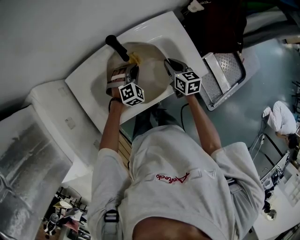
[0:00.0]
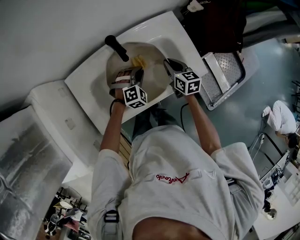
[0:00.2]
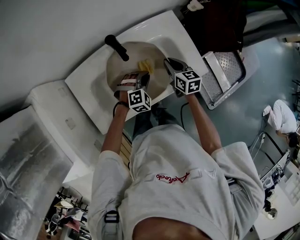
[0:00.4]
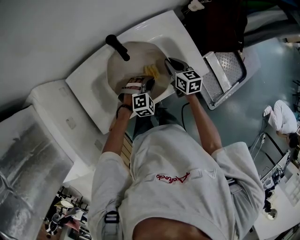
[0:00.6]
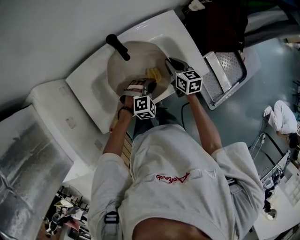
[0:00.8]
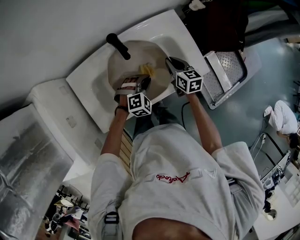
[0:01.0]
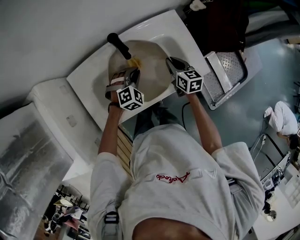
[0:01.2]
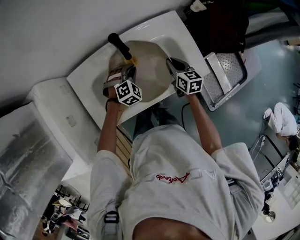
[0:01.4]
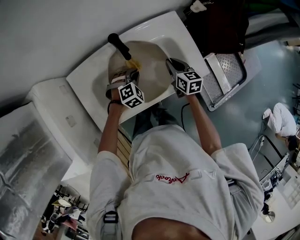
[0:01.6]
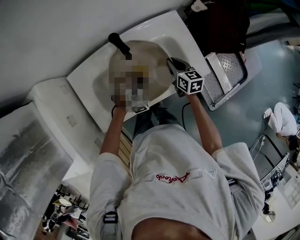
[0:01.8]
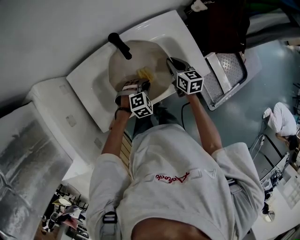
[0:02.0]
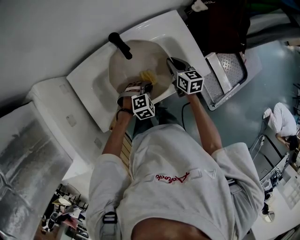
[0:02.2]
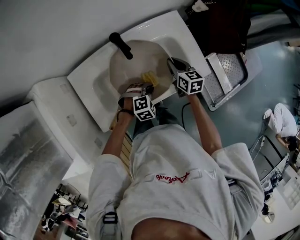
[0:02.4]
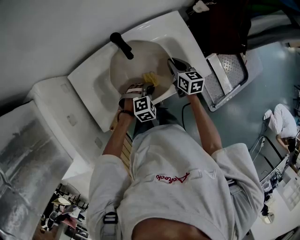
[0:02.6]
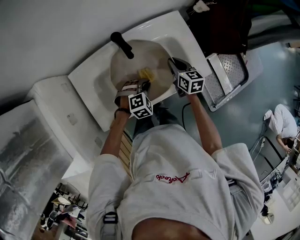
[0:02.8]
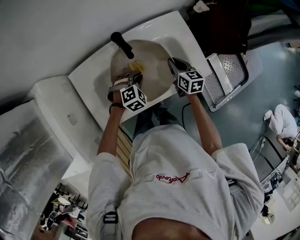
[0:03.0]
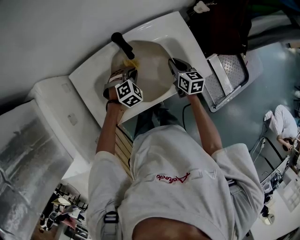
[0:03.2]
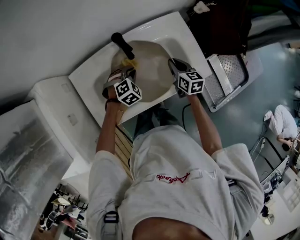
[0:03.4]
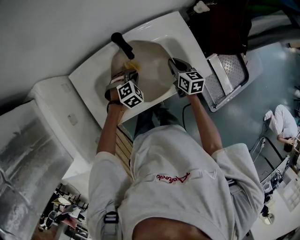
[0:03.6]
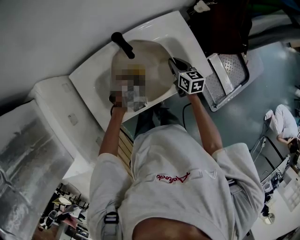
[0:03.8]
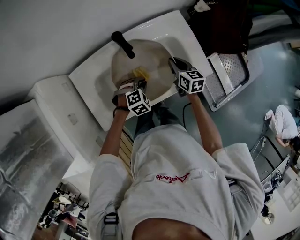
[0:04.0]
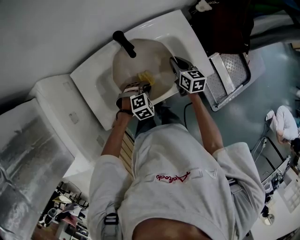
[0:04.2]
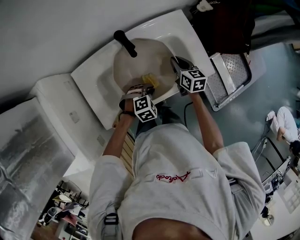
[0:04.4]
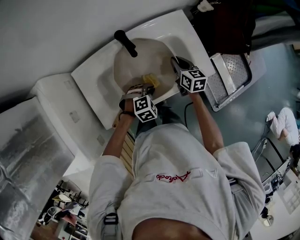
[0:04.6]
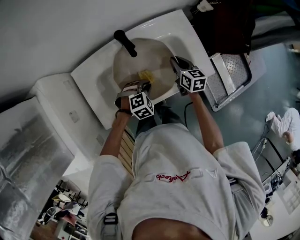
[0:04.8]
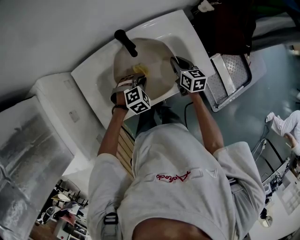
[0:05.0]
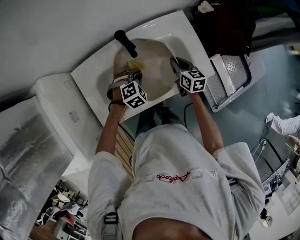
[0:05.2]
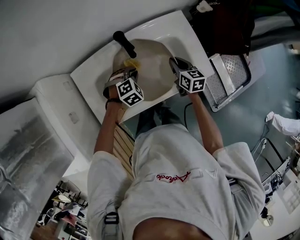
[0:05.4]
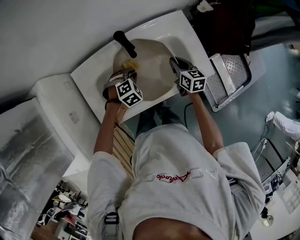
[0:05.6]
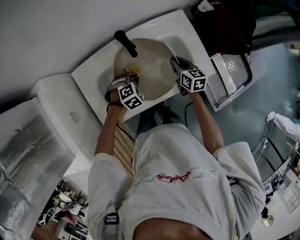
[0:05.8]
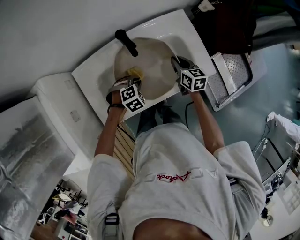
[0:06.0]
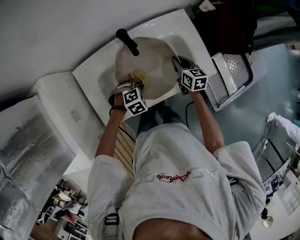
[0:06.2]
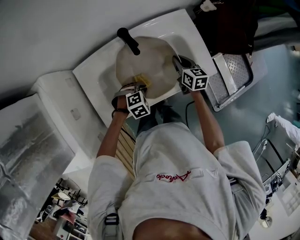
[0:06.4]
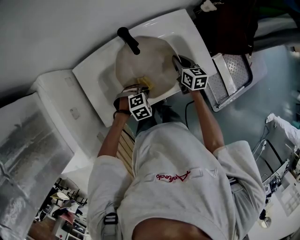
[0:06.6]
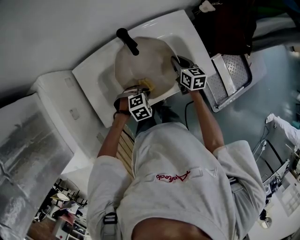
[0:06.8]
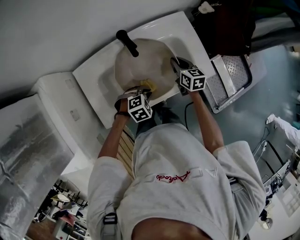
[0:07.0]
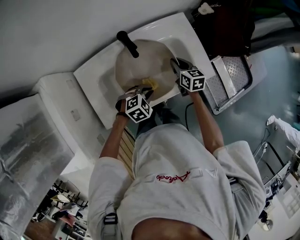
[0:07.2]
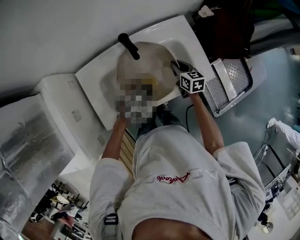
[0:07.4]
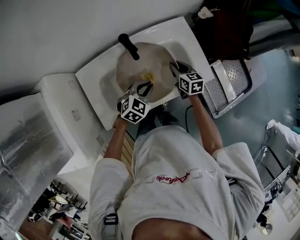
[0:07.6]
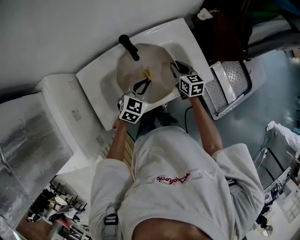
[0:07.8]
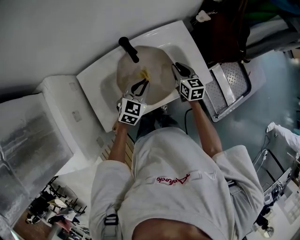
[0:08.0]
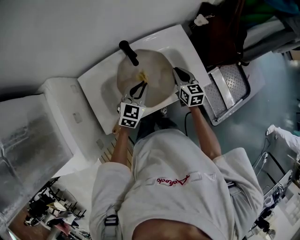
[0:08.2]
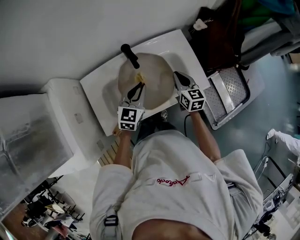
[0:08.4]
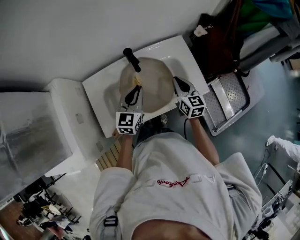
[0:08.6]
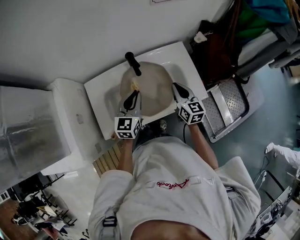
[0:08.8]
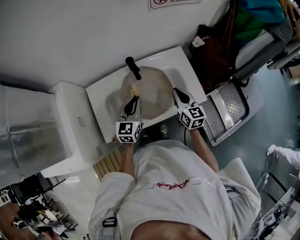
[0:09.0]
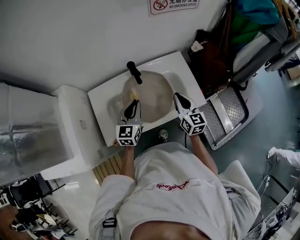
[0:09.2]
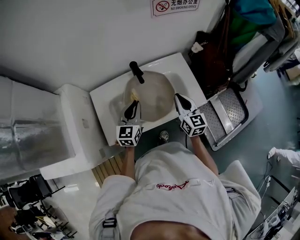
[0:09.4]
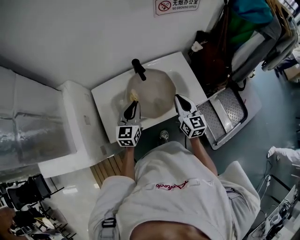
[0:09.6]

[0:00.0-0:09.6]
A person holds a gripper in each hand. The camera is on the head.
0:00.0 to 0:01.6: The left gripper travels backward and back again, roughly 10 cm each way.
0:01.6 to 0:03.2: The left gripper travels backward and back again, about 10 cm each way.
0:03.2 to 0:04.8: The left gripper travels backward and to the right by about 10 cm.
0:04.8 to 0:06.4: The left gripper moves approximately 5 cm forward and comes back.
0:06.4 to 0:08.0: The left gripper goes about 15 cm upward and forward, and tips its fingers upward by about 40 degrees.
0:08.0 to 0:09.6: The left gripper travels upward, to the left and backward by some 15 cm, and rotates approximately 30 degrees. Meanwhile the right gripper travels upward and backward by roughly 20 cm, and changes its angle by about 20 degrees.

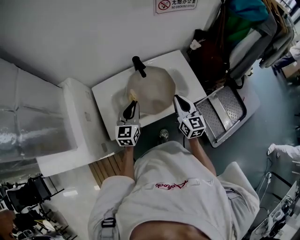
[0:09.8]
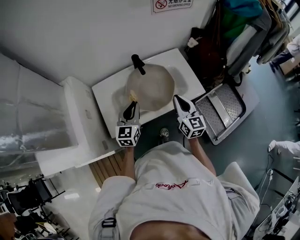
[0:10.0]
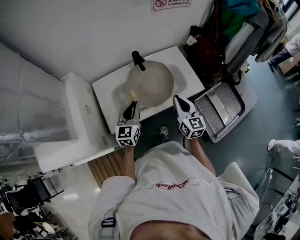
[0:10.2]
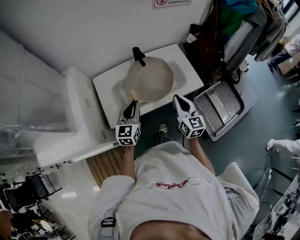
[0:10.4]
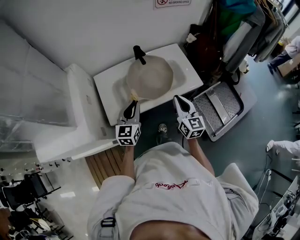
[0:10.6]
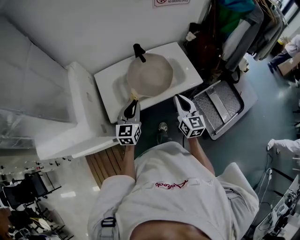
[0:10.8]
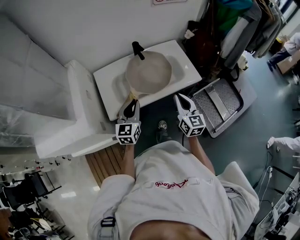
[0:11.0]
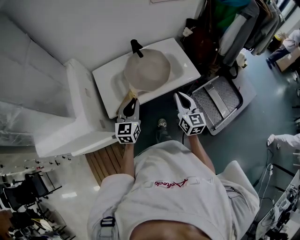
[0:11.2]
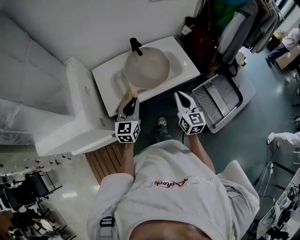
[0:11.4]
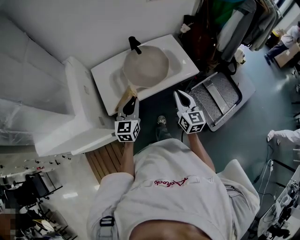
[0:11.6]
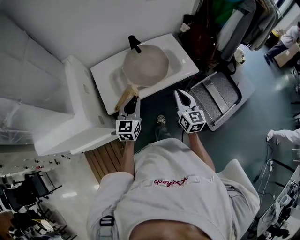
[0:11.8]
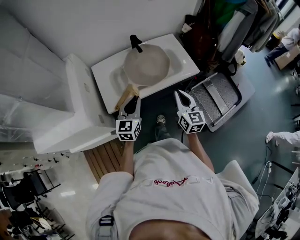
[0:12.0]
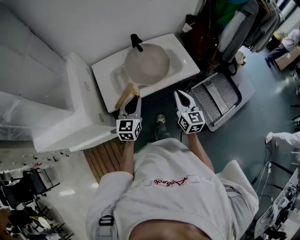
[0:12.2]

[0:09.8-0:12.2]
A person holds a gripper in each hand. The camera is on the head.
0:09.8 to 0:11.0: The grippers both shift backward by some 15 cm.
0:11.0 to 0:12.2: The grippers stay close to where they were, moving slightly.

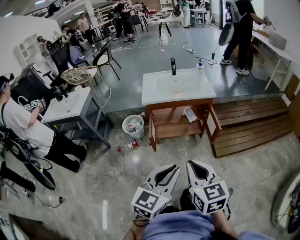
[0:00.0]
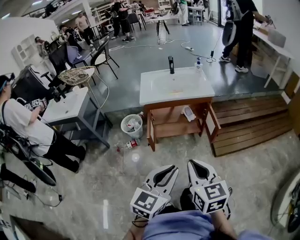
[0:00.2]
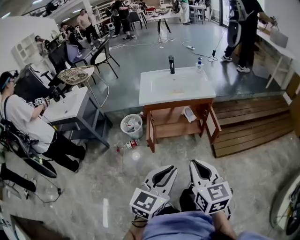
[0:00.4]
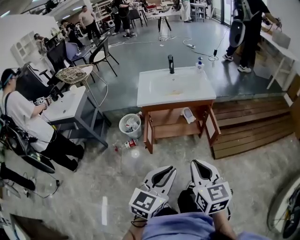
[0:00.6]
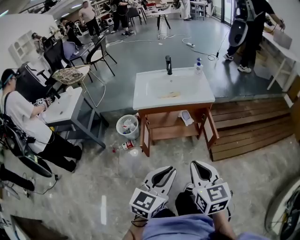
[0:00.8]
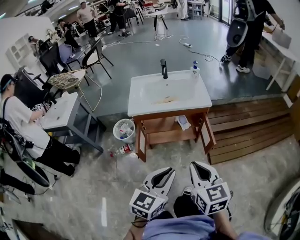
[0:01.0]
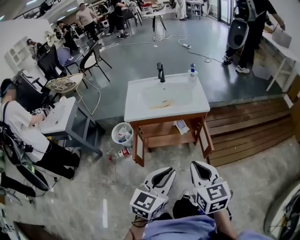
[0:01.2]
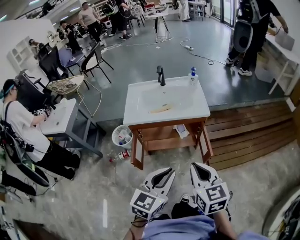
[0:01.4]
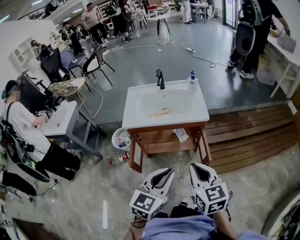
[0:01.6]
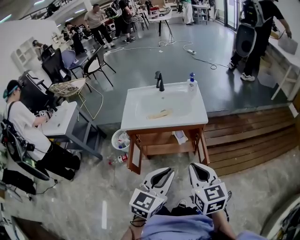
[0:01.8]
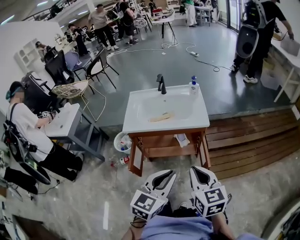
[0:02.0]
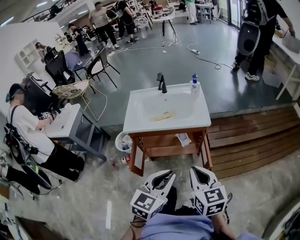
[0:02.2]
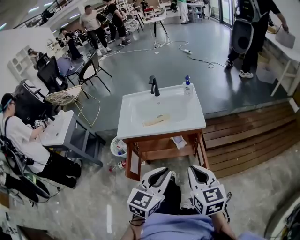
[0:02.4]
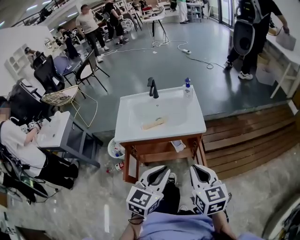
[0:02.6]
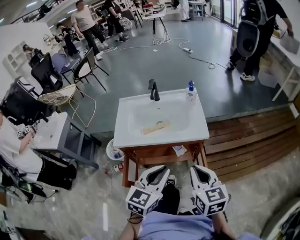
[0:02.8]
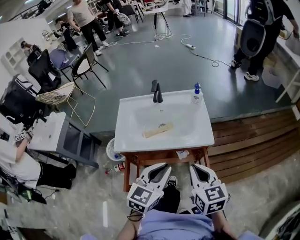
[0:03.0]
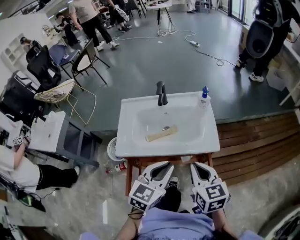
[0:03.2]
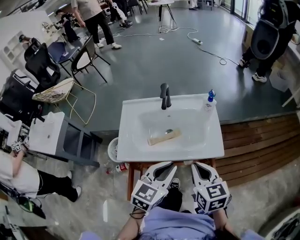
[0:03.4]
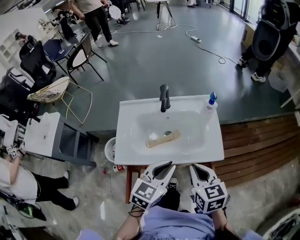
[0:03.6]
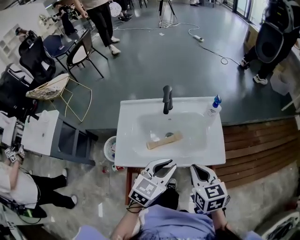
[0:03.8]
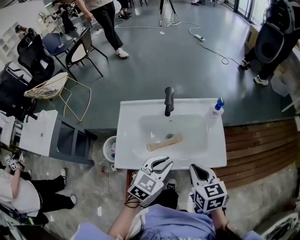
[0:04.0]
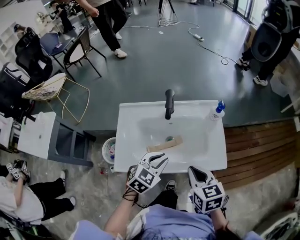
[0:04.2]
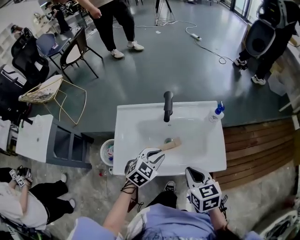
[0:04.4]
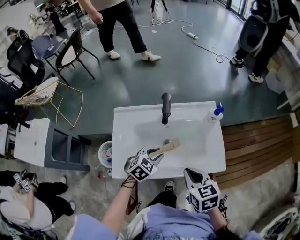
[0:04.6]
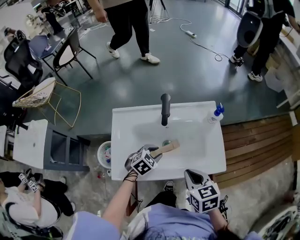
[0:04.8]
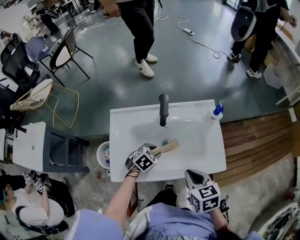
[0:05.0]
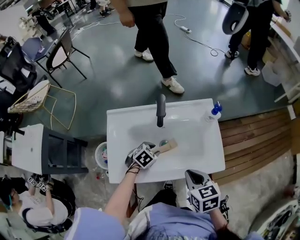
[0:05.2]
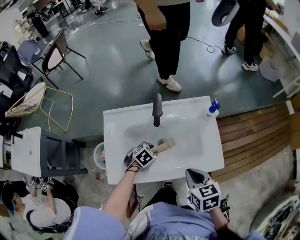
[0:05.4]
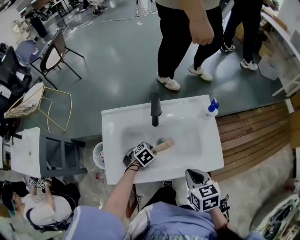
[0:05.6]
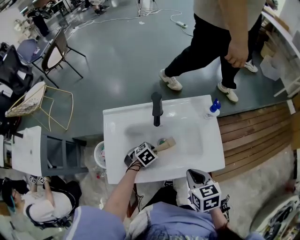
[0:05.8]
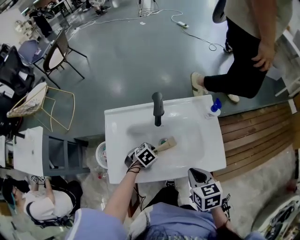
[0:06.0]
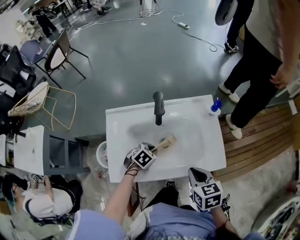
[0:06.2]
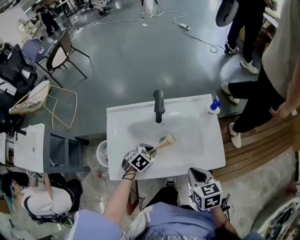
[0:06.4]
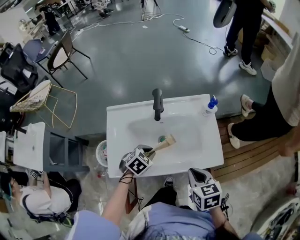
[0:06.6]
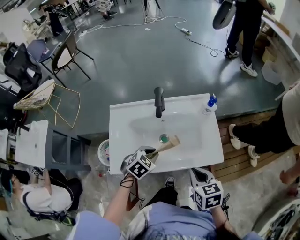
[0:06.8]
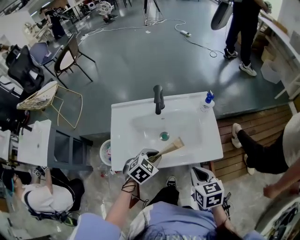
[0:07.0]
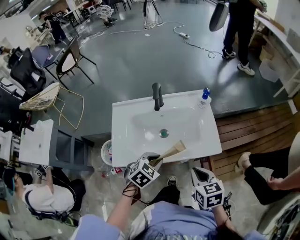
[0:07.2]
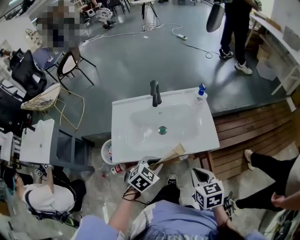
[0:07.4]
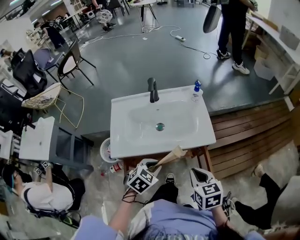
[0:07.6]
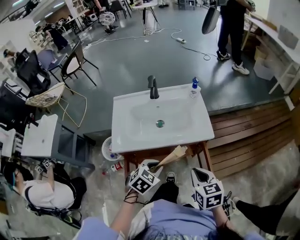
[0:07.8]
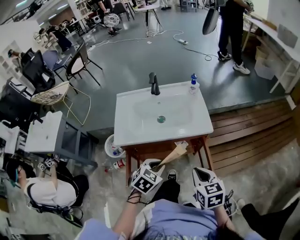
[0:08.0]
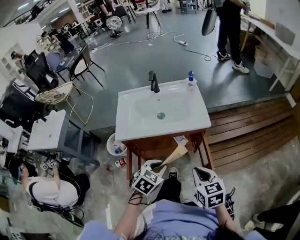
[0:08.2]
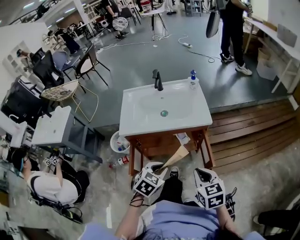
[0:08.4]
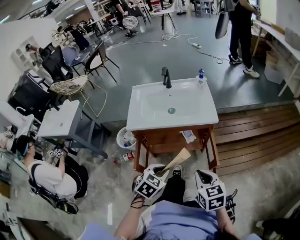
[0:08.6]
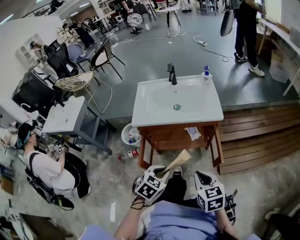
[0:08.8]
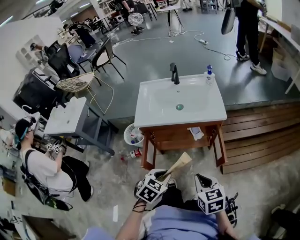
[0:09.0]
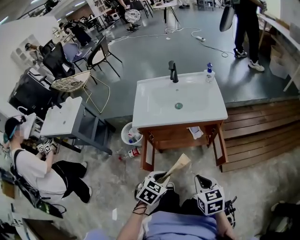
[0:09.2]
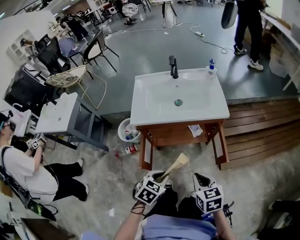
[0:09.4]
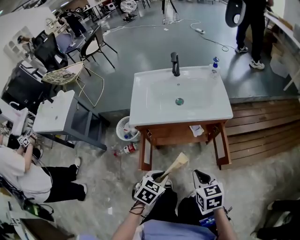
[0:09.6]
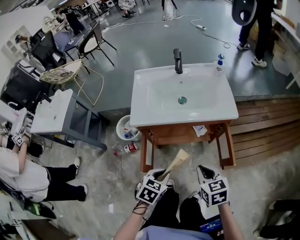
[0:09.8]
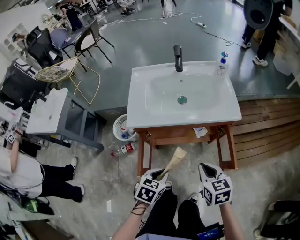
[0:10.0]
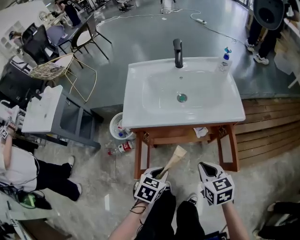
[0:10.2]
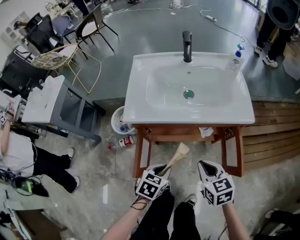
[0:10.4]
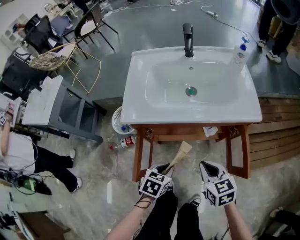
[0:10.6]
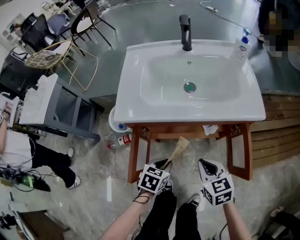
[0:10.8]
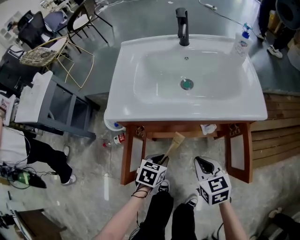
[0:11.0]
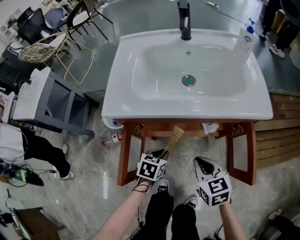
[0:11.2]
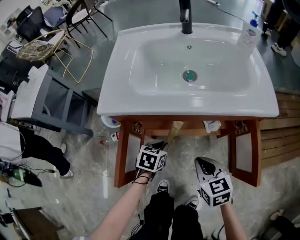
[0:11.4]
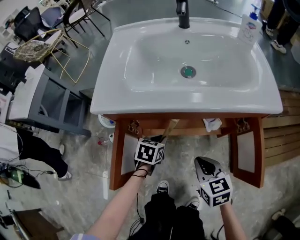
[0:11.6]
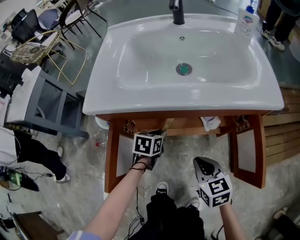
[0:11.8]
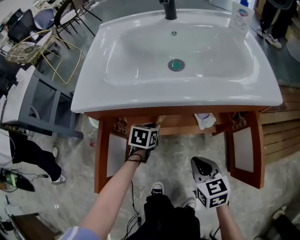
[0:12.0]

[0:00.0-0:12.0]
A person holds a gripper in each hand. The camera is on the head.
0:00.0 to 0:01.6: The right gripper heads forward and to the right, covering some 30 cm; the left gripper moves forward, approximately 25 cm.
0:01.6 to 0:03.0: The grippers both shift forward by roughly 20 cm.
0:03.0 to 0:04.4: The right gripper travels forward, to the left and downward by roughly 20 cm, while the left gripper travels forward, downward and to the left by approximately 30 cm, and changes its angle by roughly 30 degrees.
0:04.4 to 0:06.0: The right gripper ends up some 5 cm from where it was, while the left gripper moves downward, about 15 cm, and rotates approximately 30 degrees.
0:06.0 to 0:07.6: The right gripper moves backward and to the right, about 15 cm, while the left gripper travels backward, upward and to the right by roughly 25 cm.
0:07.6 to 0:09.0: Both grippers travel together backward, about 25 cm.
0:09.0 to 0:10.4: The right gripper goes about 20 cm forward, downward and to the left; the left gripper goes approximately 20 cm downward and forward.
0:10.4 to 0:12.0: The right gripper heads downward, covering approximately 20 cm. Meanwhile the left gripper shifts approximately 30 cm downward and forward.
